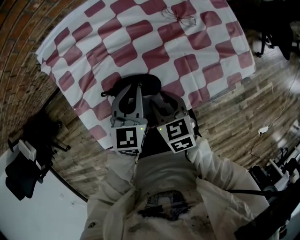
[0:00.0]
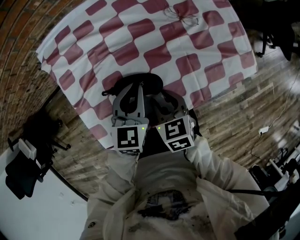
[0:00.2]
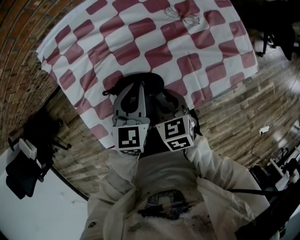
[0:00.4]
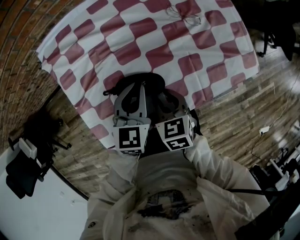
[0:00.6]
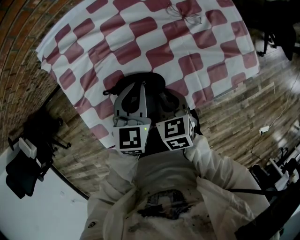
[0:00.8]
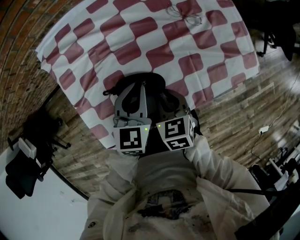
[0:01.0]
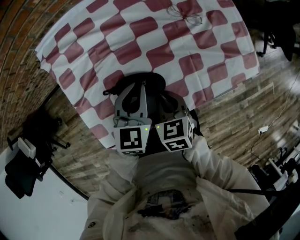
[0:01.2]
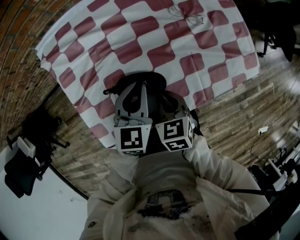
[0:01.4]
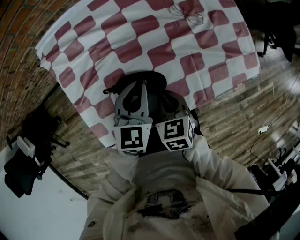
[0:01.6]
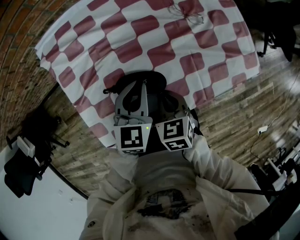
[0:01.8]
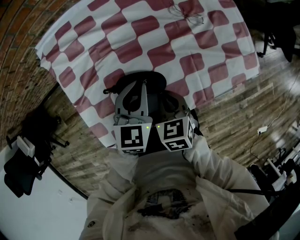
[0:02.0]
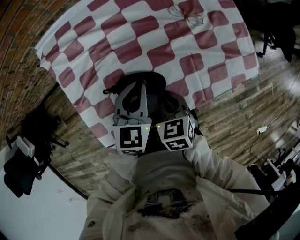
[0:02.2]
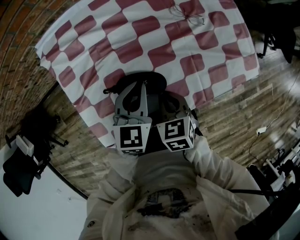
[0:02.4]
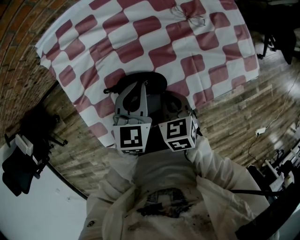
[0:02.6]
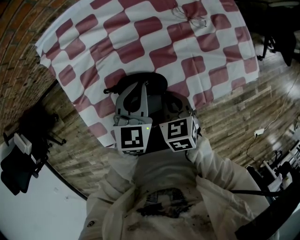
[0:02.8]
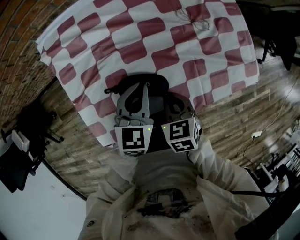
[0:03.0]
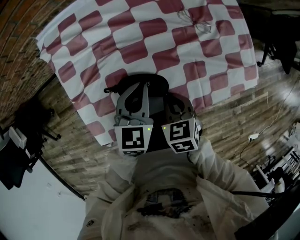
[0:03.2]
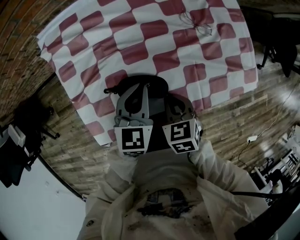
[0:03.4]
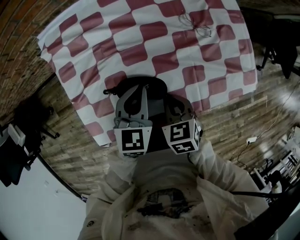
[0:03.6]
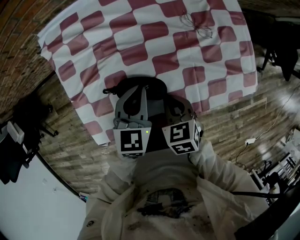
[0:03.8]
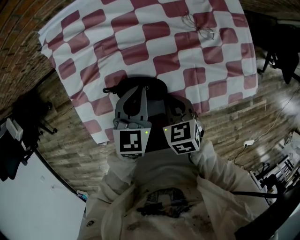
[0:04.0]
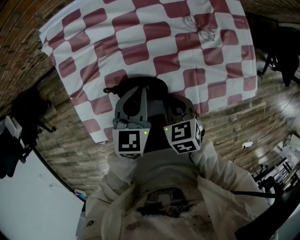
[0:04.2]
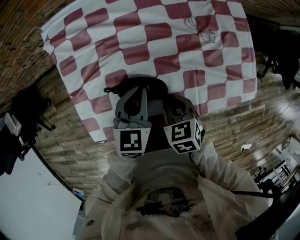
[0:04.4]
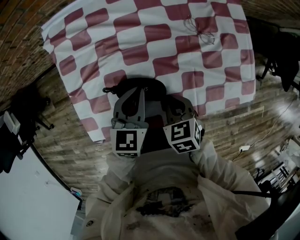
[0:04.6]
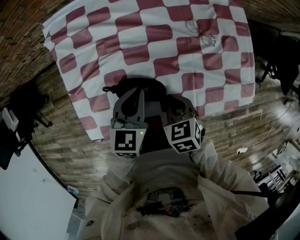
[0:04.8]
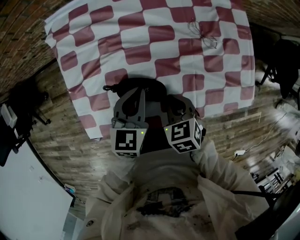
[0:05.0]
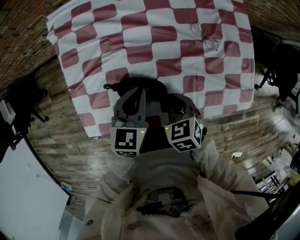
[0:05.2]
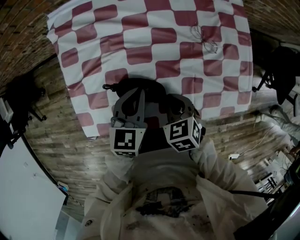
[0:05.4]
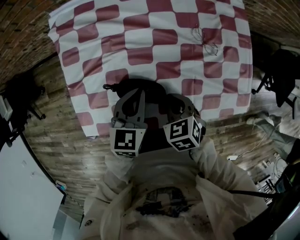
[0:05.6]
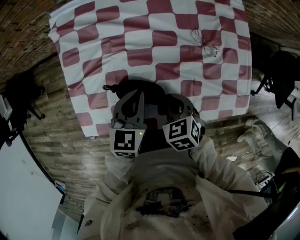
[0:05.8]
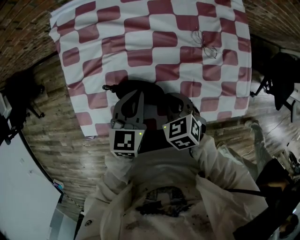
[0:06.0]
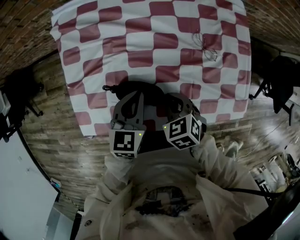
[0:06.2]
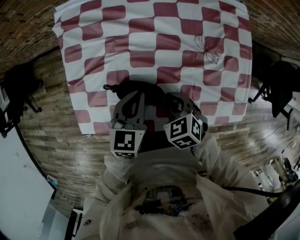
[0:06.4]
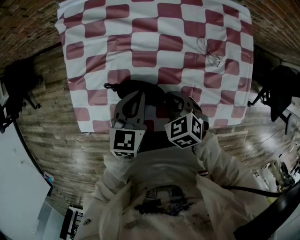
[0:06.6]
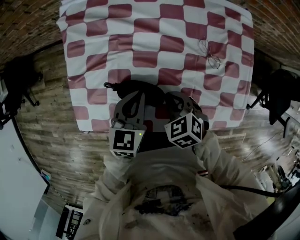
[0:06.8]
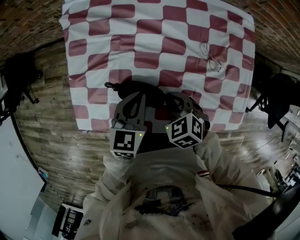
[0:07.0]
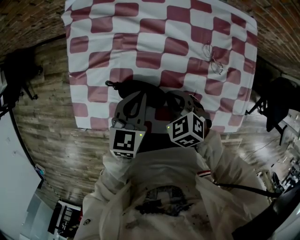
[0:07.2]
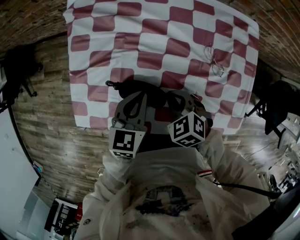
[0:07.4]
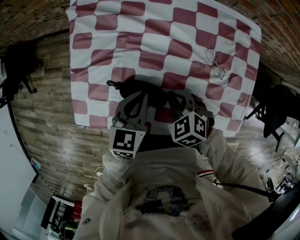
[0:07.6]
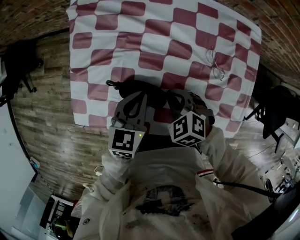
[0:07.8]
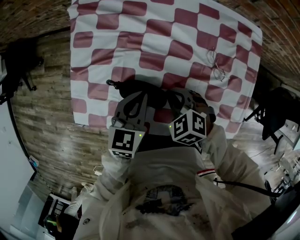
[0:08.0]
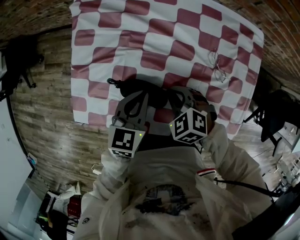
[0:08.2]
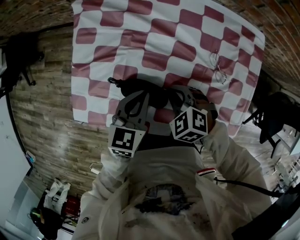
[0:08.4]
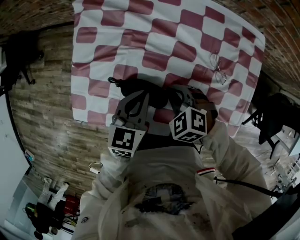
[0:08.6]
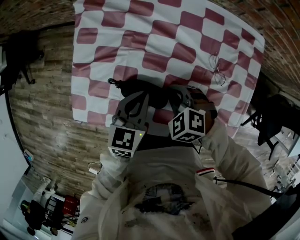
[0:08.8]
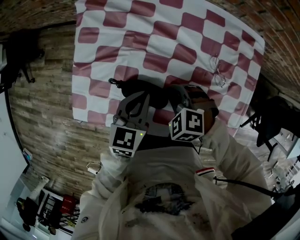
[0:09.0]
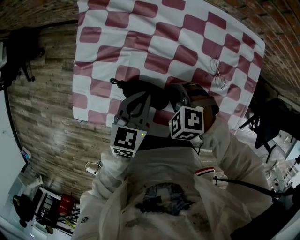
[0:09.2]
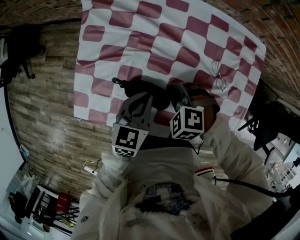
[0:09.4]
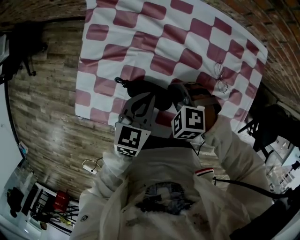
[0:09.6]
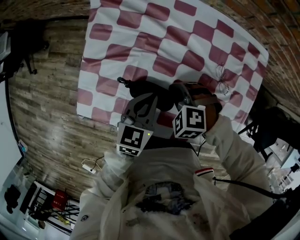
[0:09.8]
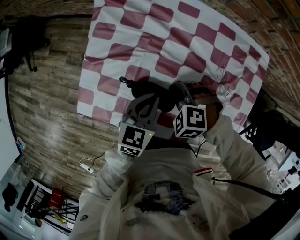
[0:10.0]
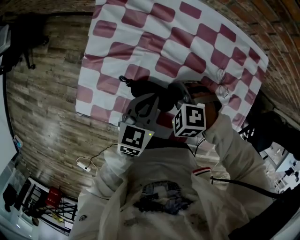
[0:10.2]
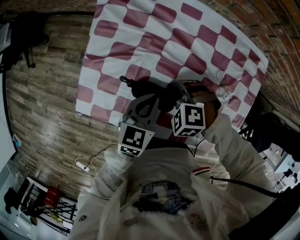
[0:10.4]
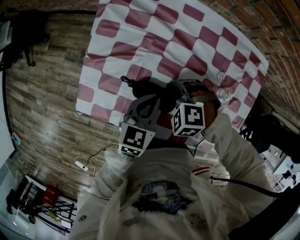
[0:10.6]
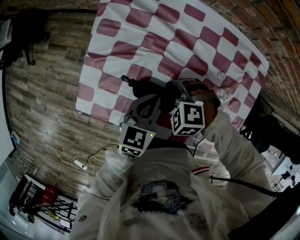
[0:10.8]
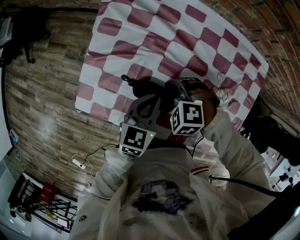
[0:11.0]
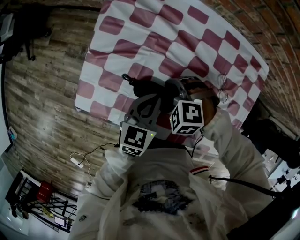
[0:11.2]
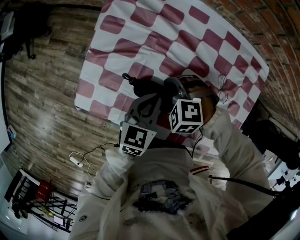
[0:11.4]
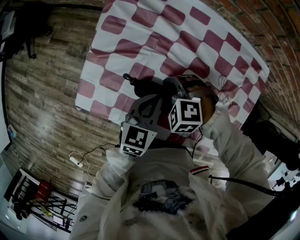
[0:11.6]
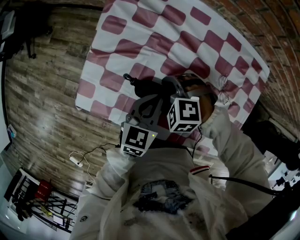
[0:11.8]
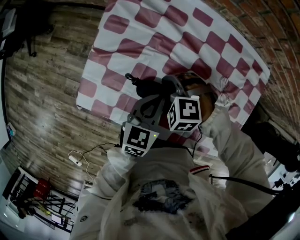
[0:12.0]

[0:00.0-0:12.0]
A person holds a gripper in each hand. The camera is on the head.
0:00.0 to 0:01.6: The right gripper closes.
0:01.6 to 0:04.4: There are only small adjustments of the grippers.
0:04.4 to 0:06.0: The grippers stay close to where they were, moving slightly.
0:06.0 to 0:07.6: The right gripper rotates some 30 degrees.
0:07.6 to 0:09.0: The right gripper changes its angle by some 30 degrees.
0:09.0 to 0:10.4: The grippers move only a little.
0:10.4 to 0:12.0: The grippers move only a little.

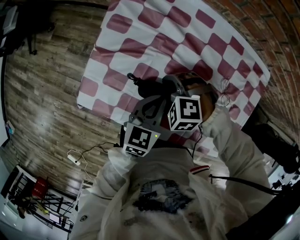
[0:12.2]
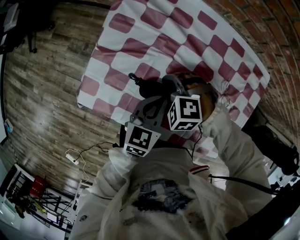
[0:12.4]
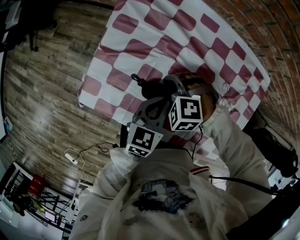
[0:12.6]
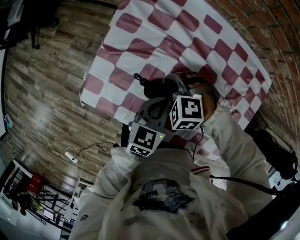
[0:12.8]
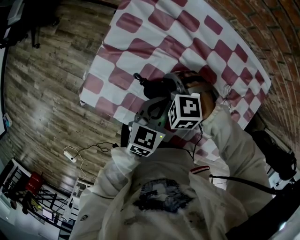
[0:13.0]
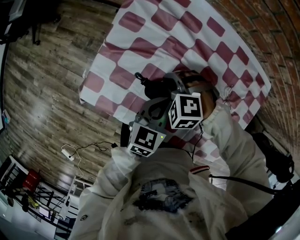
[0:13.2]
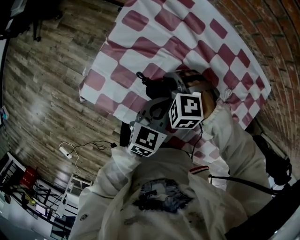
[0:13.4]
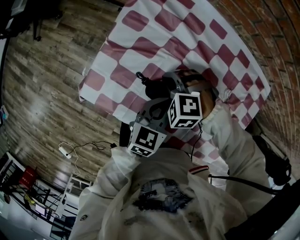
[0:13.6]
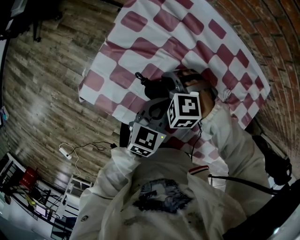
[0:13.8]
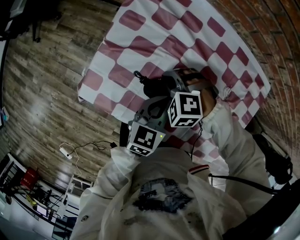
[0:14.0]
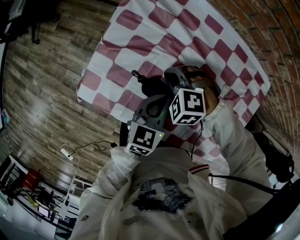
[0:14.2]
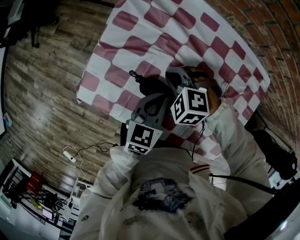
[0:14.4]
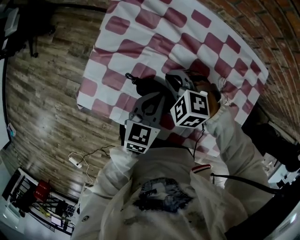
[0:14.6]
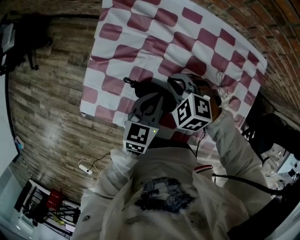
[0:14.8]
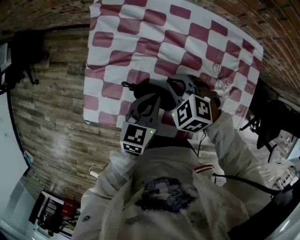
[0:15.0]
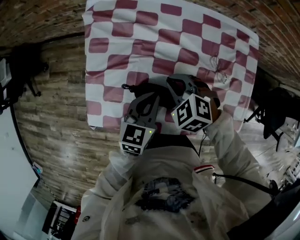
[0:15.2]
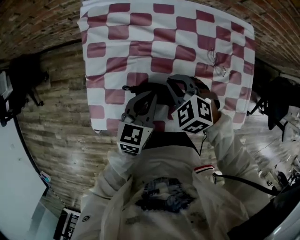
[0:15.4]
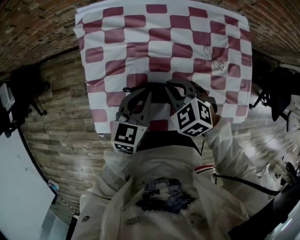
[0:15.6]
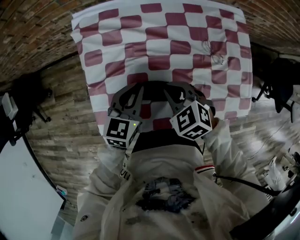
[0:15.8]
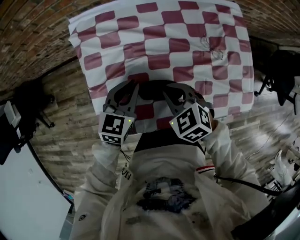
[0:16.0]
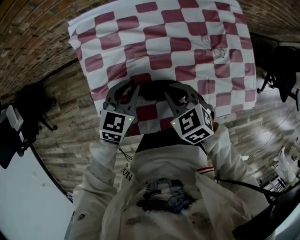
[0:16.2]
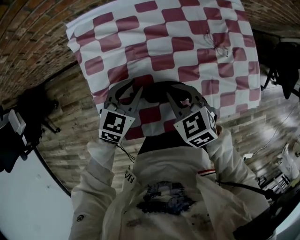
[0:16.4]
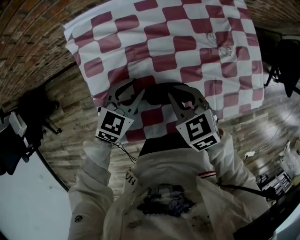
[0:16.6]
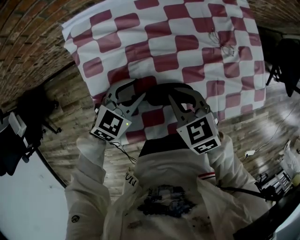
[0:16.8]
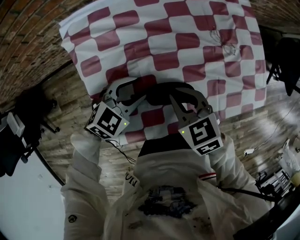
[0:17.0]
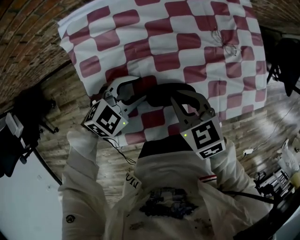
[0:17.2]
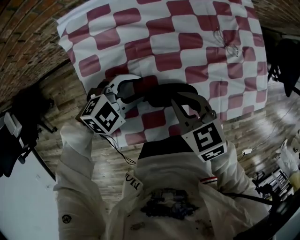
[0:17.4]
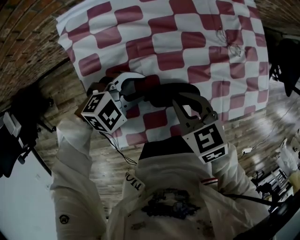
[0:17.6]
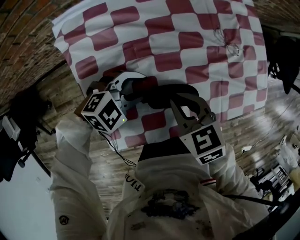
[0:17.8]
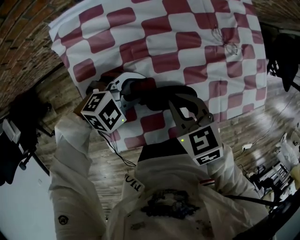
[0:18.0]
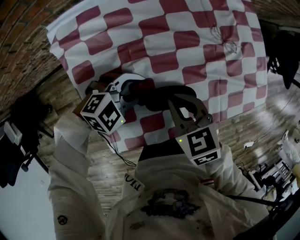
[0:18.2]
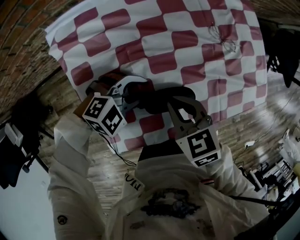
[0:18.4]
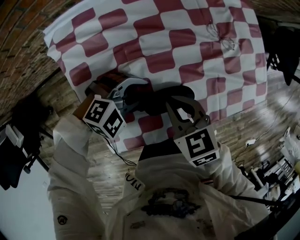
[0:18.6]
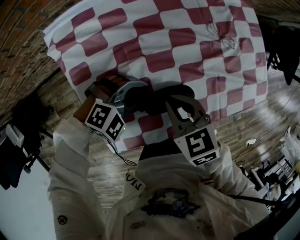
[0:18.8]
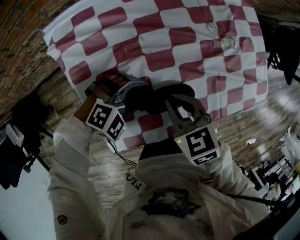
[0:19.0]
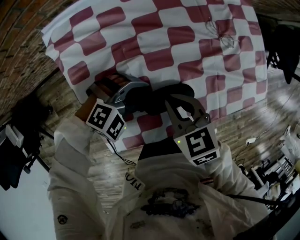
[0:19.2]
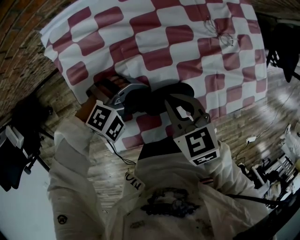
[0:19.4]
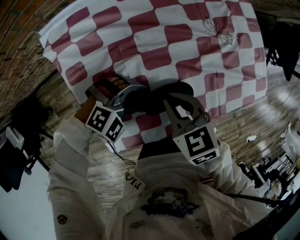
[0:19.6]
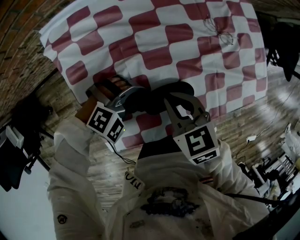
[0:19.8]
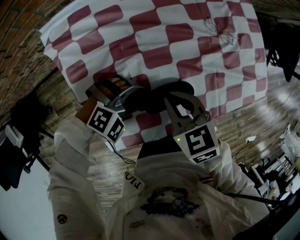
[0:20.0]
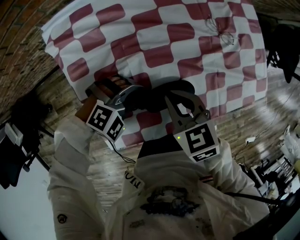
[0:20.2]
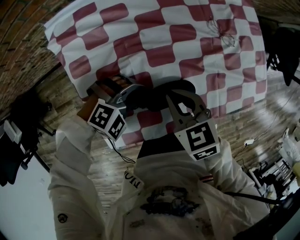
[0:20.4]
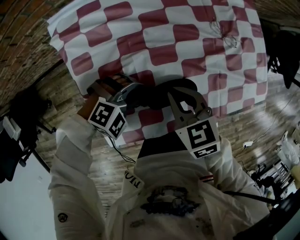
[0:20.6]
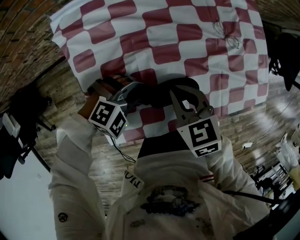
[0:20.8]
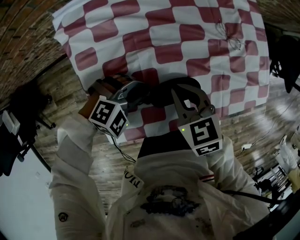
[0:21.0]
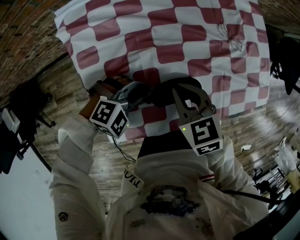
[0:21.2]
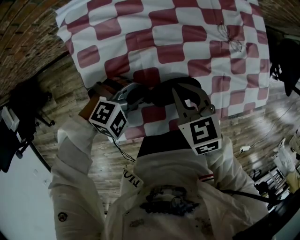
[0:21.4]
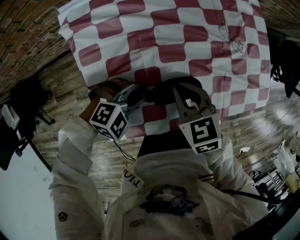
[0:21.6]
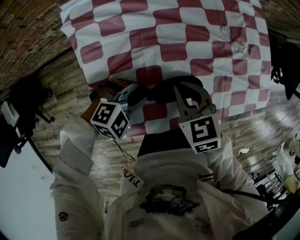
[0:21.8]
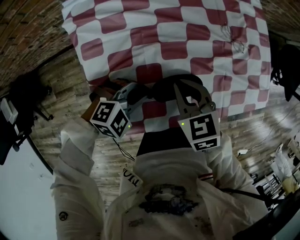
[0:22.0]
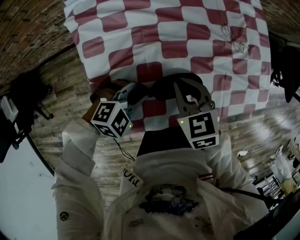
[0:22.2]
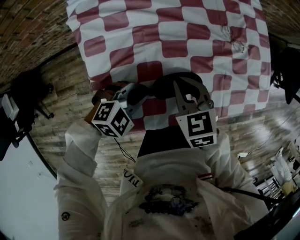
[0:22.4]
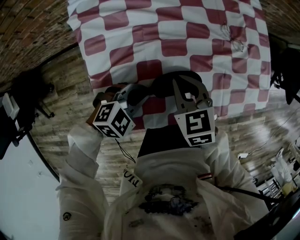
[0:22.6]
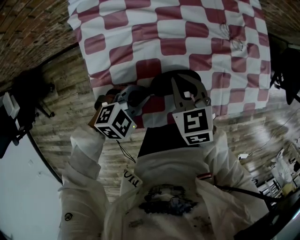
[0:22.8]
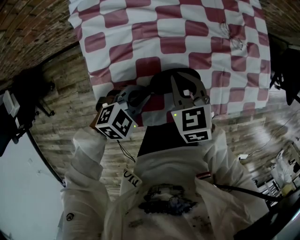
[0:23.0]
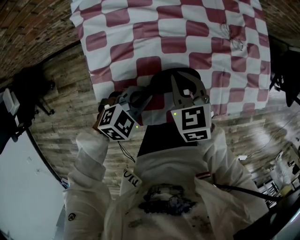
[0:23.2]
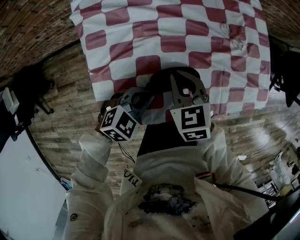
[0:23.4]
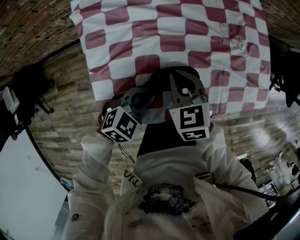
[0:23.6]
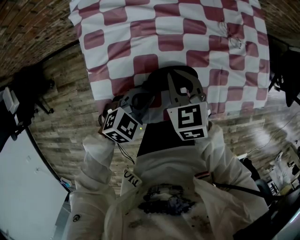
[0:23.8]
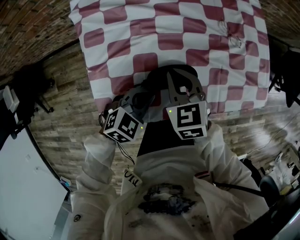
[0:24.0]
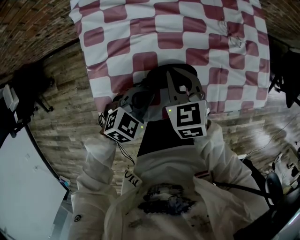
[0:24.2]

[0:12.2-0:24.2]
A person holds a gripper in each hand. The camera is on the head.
0:12.2 to 0:13.8: The grippers make only small movements.
0:13.8 to 0:15.2: The right gripper moves to the right, approximately 5 cm, and twists about 40 degrees clockwise, seen from behind.
0:15.2 to 0:16.6: The left gripper heads to the left, covering roughly 5 cm, turns by about 40 degrees, and opens up, while the right gripper rotates around the line of its fingers by roughly 40 degrees, clockwise from behind.
0:16.6 to 0:18.2: The left gripper moves approximately 5 cm, and turns by some 50 degrees.
0:18.2 to 0:19.8: The left gripper swivels roughly 20 degrees, and closes its fingers.
0:19.8 to 0:21.2: There are only small adjustments of the grippers.
0:21.2 to 0:22.6: The left gripper turns by roughly 20 degrees.
0:22.6 to 0:24.2: The left gripper turns by about 20 degrees.
